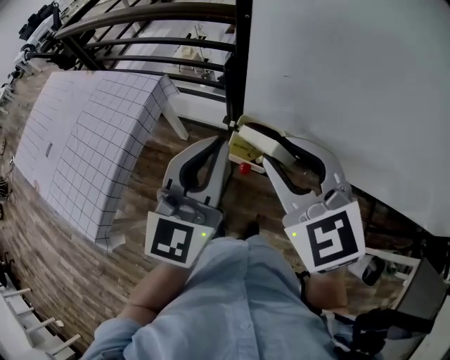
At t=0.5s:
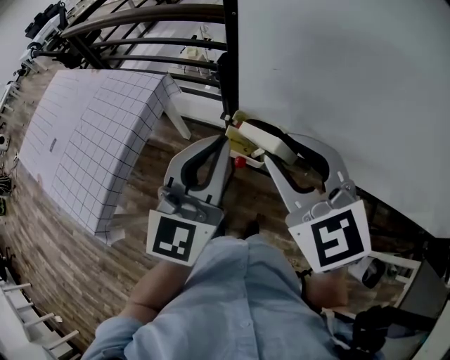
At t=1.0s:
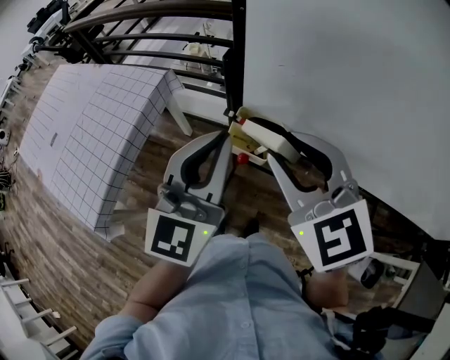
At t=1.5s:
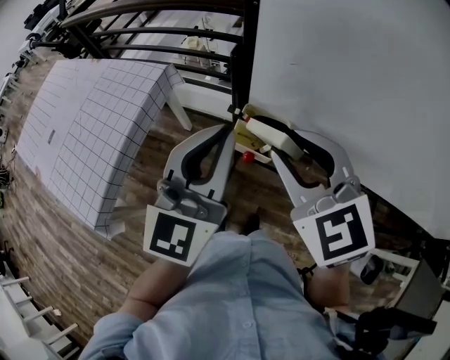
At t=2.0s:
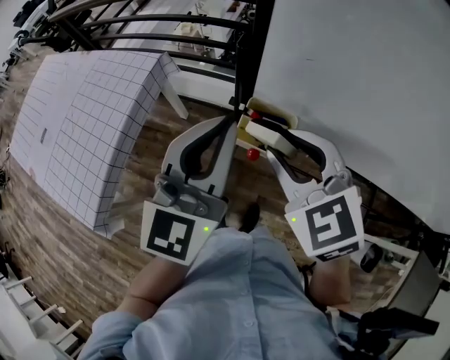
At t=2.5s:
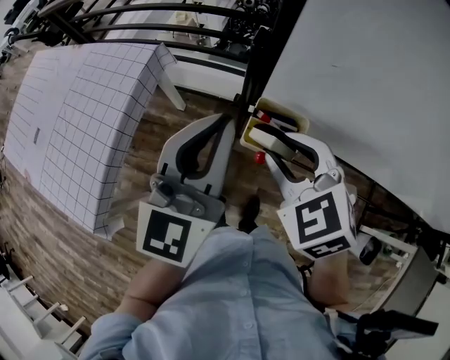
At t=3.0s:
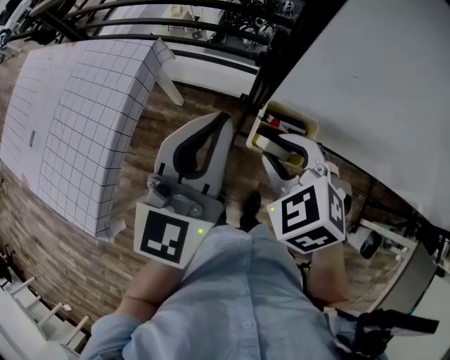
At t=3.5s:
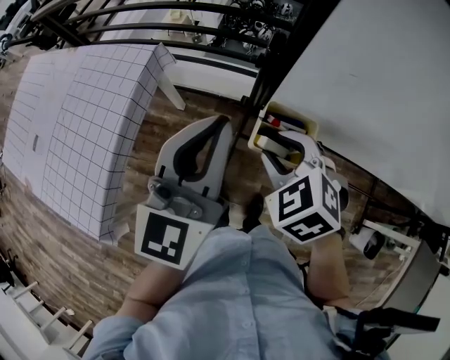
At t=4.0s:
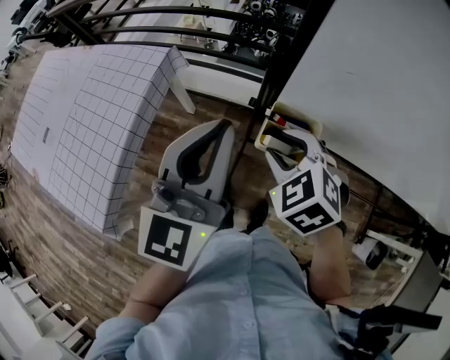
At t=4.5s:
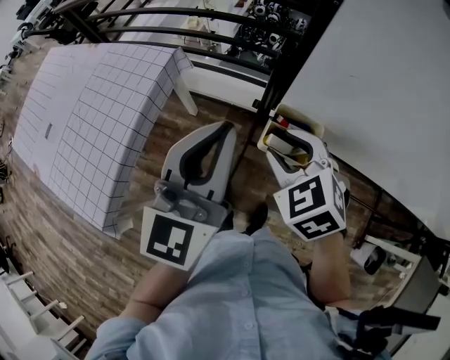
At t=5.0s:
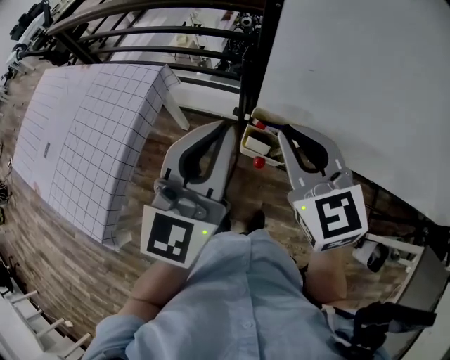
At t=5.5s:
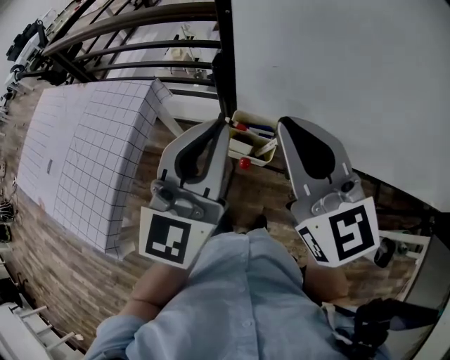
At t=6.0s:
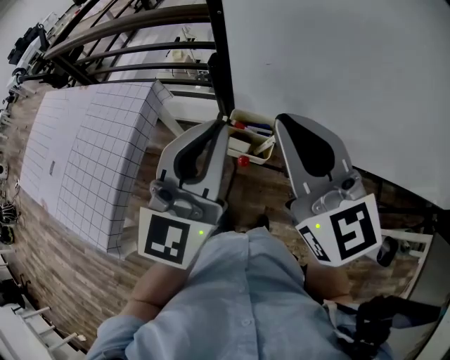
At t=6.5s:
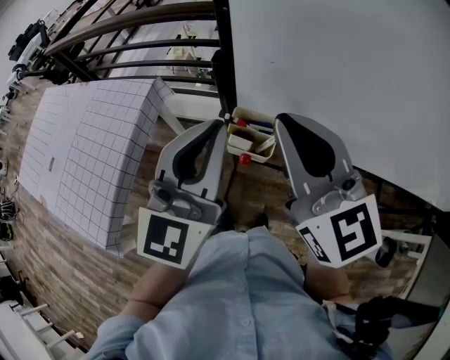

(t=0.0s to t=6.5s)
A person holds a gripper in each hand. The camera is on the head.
t=0.0s - t=2.0s: The right gripper ends up about 5 cm from where it was.
t=2.0s - t=4.5s: The left gripper heads to the left, covering about 5 cm. The right gripper moves downward, some 10 cm.
t=4.5s - t=6.5s: The right gripper shifts approximately 20 cm upward, points its fingers about 50 degrees further upward, and closes up. Meanwhile the left gripper shifts approximately 10 cm to the right.

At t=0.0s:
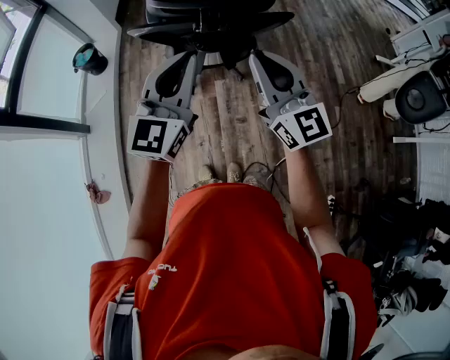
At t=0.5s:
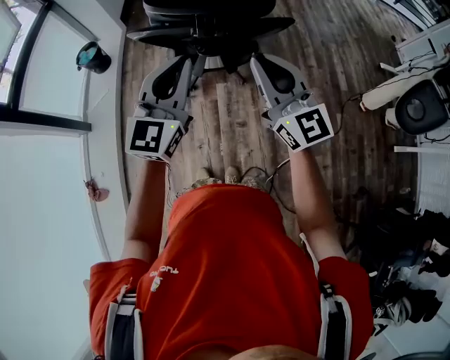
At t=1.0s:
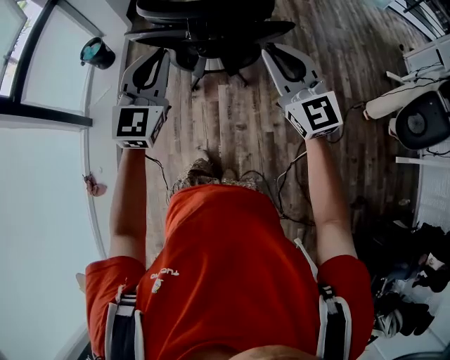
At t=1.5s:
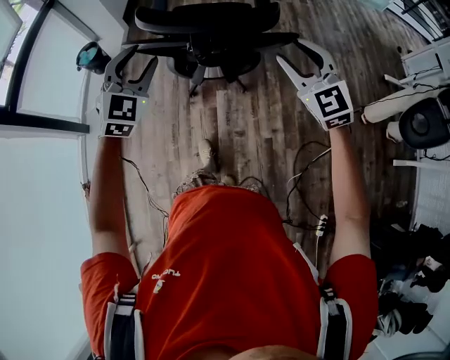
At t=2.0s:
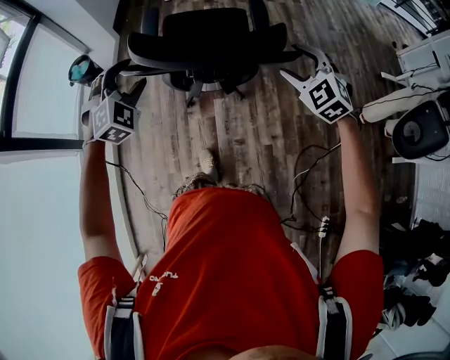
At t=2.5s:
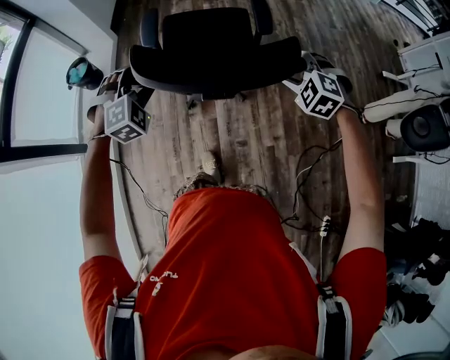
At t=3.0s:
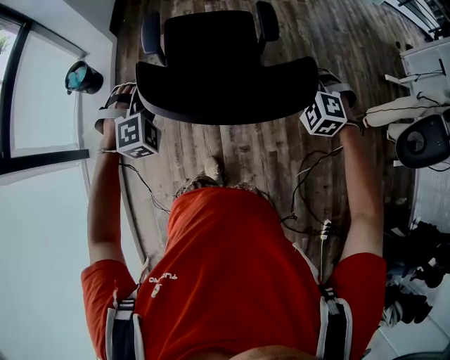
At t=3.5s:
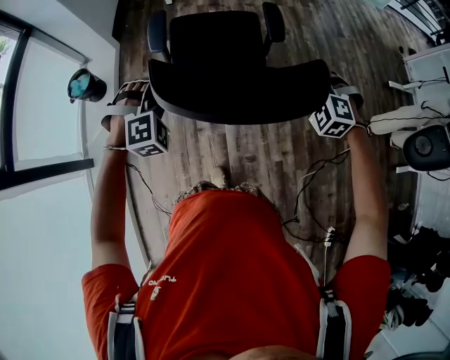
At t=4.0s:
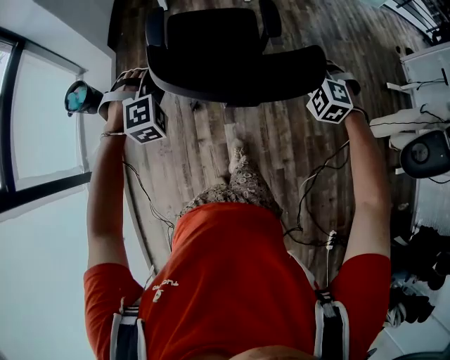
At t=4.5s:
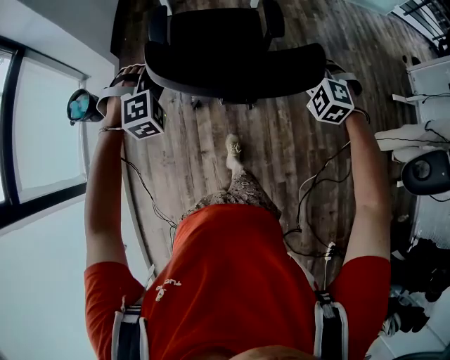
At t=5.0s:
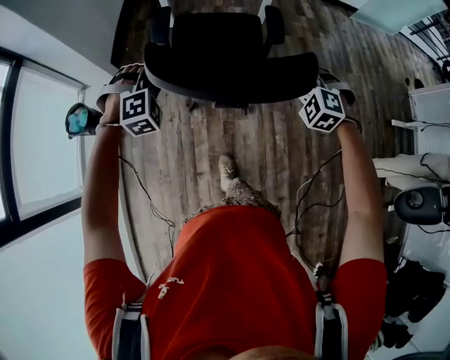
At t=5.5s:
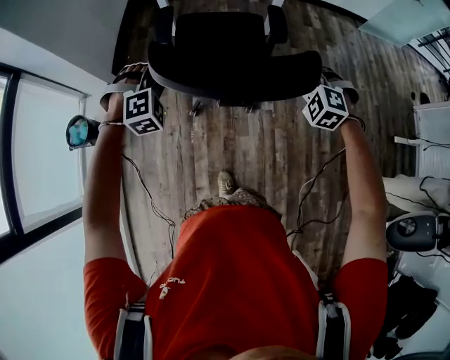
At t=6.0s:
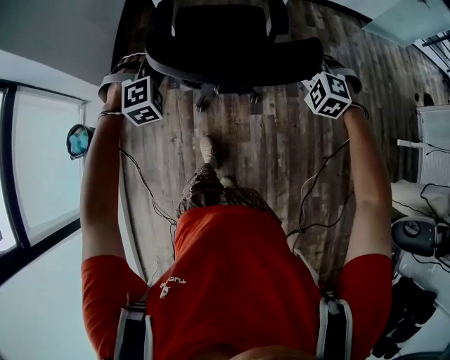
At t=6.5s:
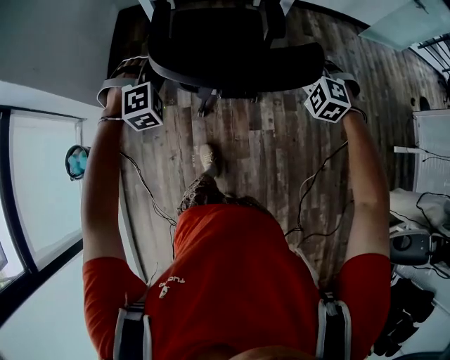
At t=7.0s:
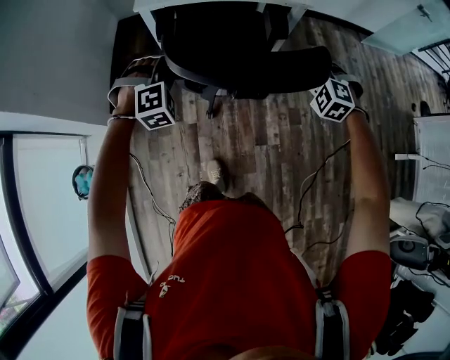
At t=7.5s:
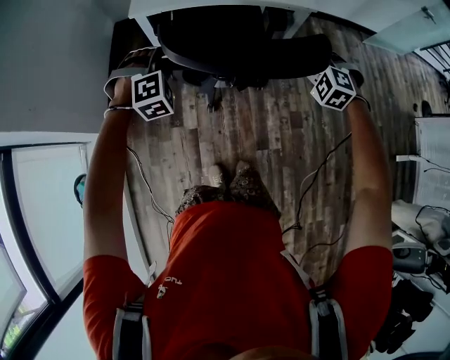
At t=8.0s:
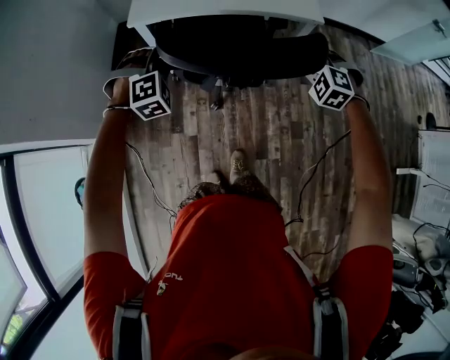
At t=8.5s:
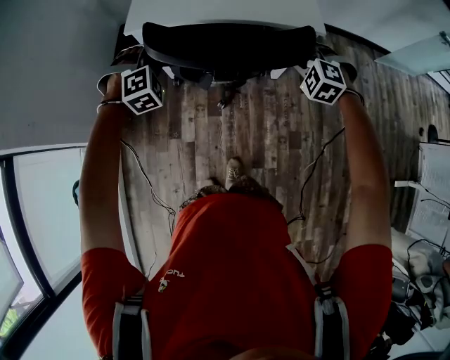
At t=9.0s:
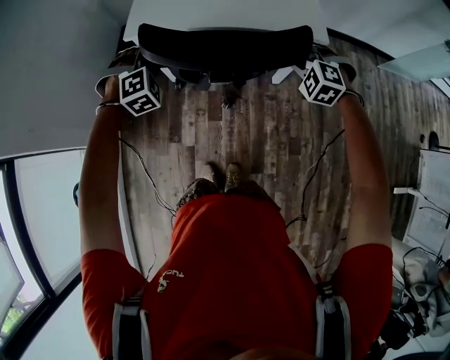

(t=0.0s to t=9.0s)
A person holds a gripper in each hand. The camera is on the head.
t=0.0s - t=2.0s: The right gripper goes about 30 cm forward, to the right and downward, tips its fingers downward by roughly 50 degrees, and opens its fingers, while the left gripper is displaced forward, downward and to the left by roughly 30 cm, points its fingers approximately 40 degrees further downward, and opens its fingers.
t=2.0s - t=4.5s: The grippers both shift forward by approximately 30 cm. The right gripper swivels about 20 degrees, and closes. Meanwhile the left gripper swivels about 20 degrees, and closes up.
t=4.5s - t=7.0s: The two grippers travel together, forward, roughly 60 cm.
t=7.0s - t=9.0s: The grippers both shift forward by approximately 25 cm.

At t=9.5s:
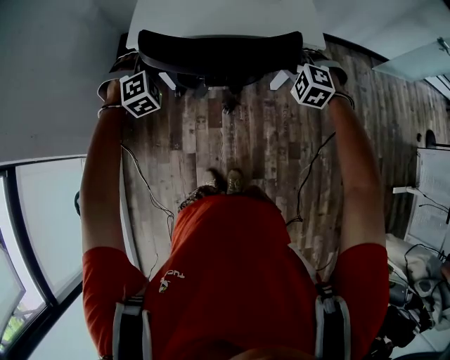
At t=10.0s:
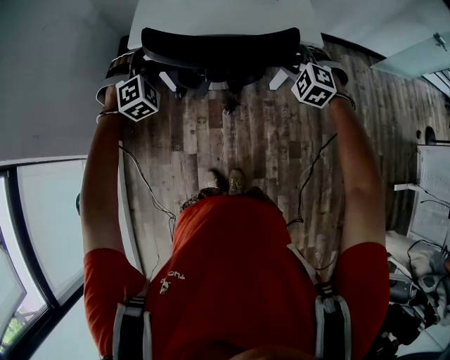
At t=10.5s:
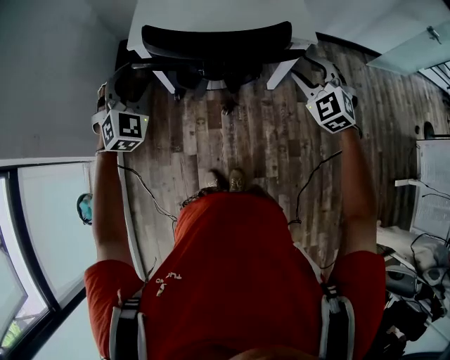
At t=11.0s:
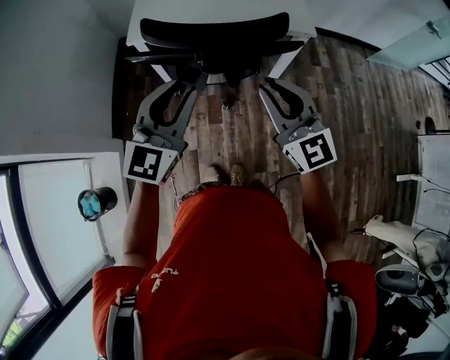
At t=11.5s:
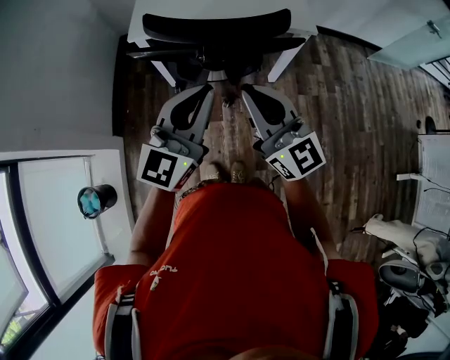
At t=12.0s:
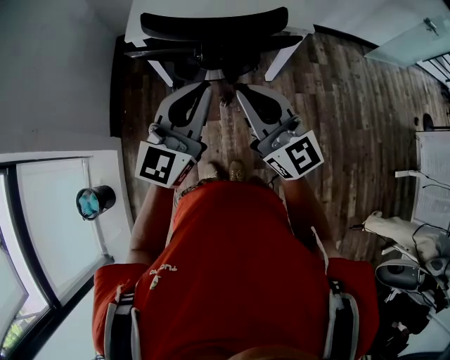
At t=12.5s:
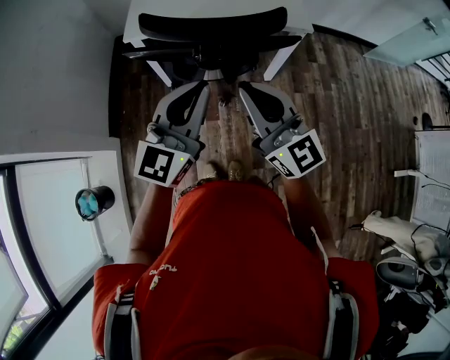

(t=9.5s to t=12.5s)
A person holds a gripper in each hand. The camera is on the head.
t=9.5s - t=11.0s: The right gripper shifts approximately 25 cm backward, upward and to the left, points its fingers some 50 degrees further upward, and opens, then closes once more. Meanwhile the left gripper travels backward, upward and to the right by approximately 25 cm, tips its fingers upward by approximately 40 degrees, and opens, then closes again.
t=11.0s - t=12.5s: The right gripper changes place by about 5 cm. The left gripper closes its fingers.

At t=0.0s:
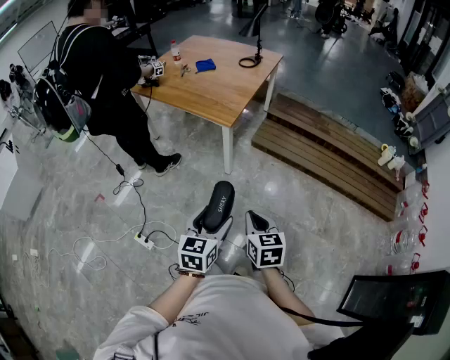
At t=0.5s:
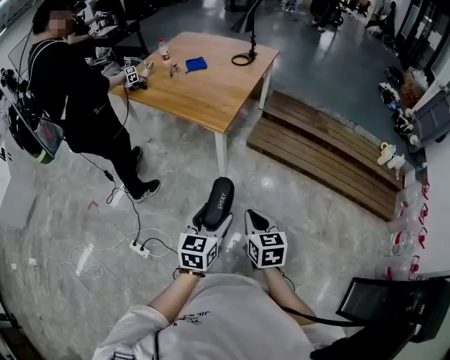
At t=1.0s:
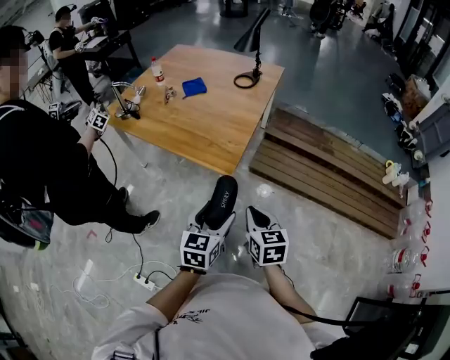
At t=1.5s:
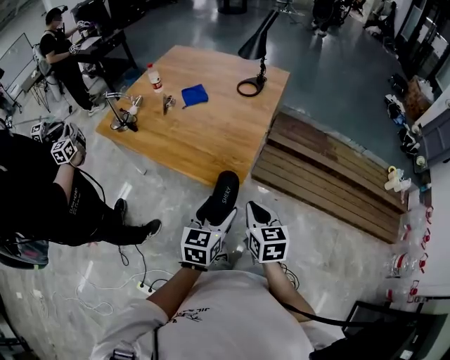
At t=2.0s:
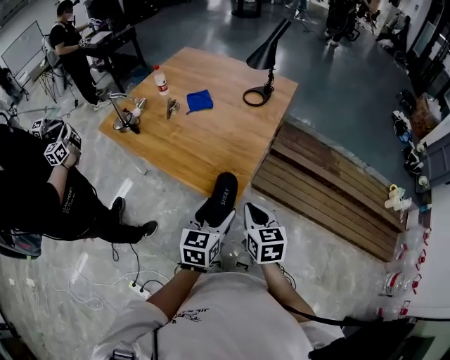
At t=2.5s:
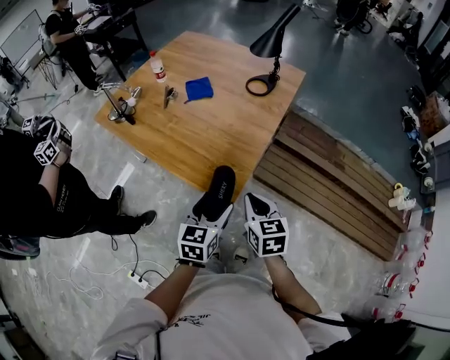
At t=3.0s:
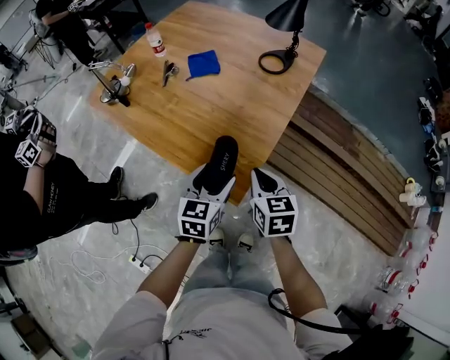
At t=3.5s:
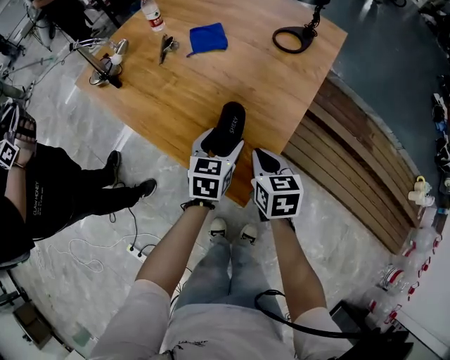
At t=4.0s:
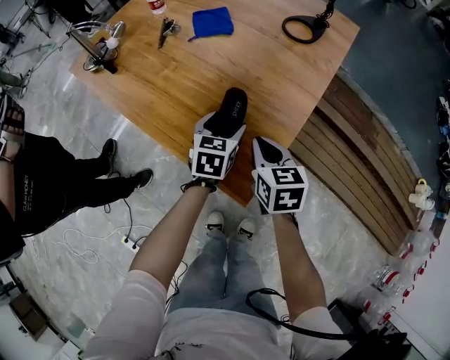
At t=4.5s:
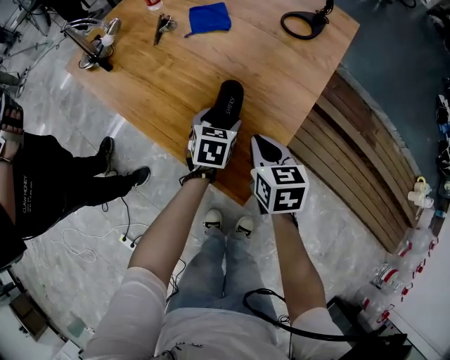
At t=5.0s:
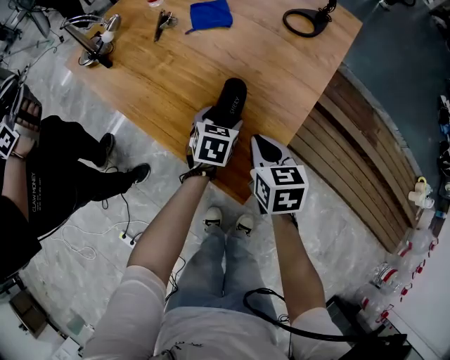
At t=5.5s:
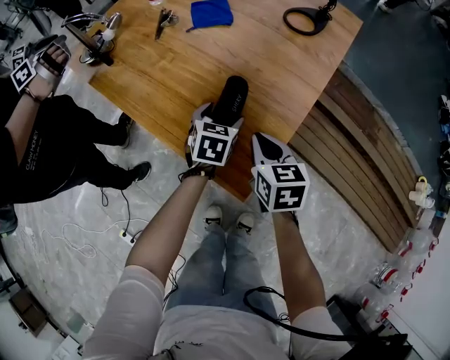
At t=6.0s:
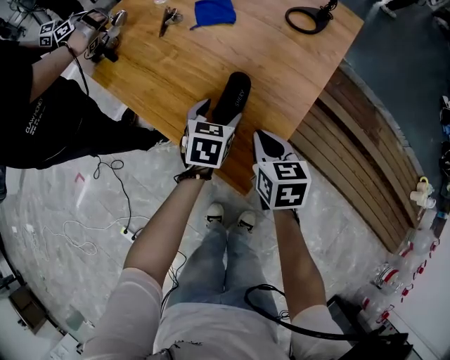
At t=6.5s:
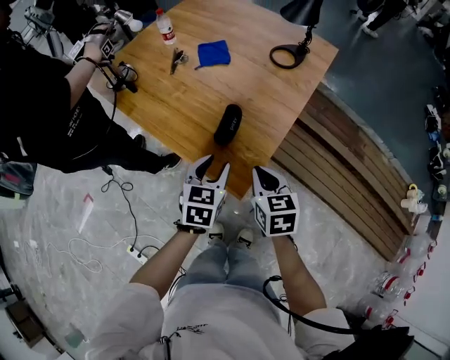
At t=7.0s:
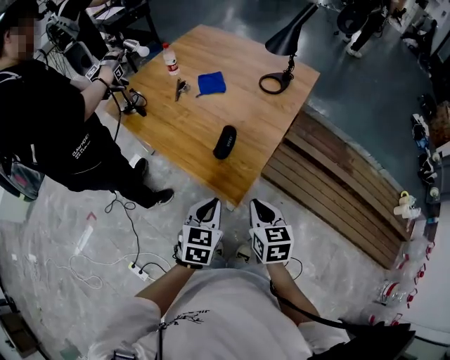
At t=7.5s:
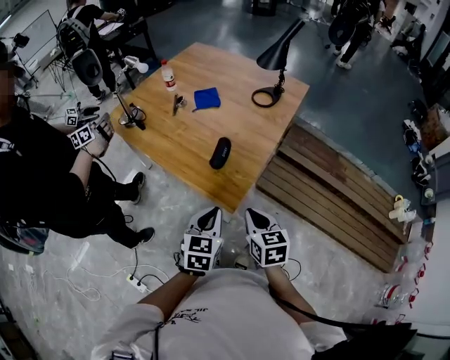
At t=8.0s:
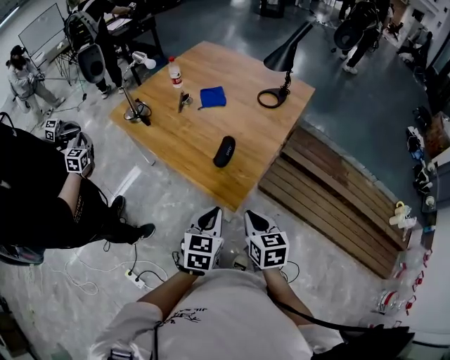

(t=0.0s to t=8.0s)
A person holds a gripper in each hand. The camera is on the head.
t=0.0s - t=2.0s: The pair of grippers is taken forward, roughly 50 cm.
t=2.0s - t=4.0s: Both grippers travel together forward and downward, approximately 35 cm.
t=4.0s - t=6.0s: The grippers make only small movements.
t=6.0s - t=8.0s: Both grippers move backward and upward, about 35 cm. The left gripper closes its fingers.
